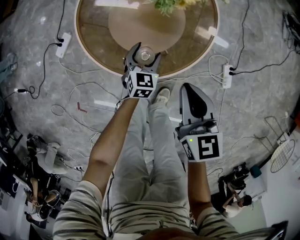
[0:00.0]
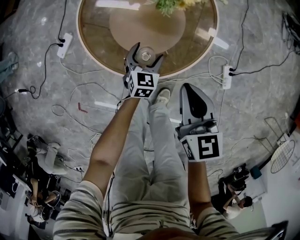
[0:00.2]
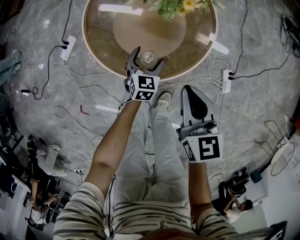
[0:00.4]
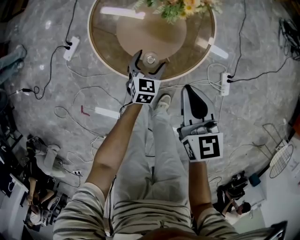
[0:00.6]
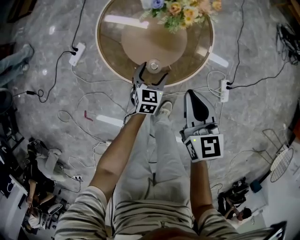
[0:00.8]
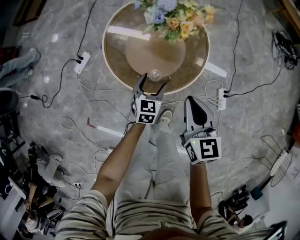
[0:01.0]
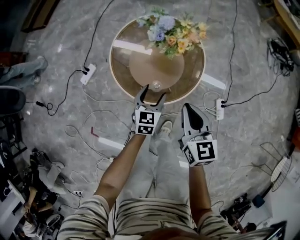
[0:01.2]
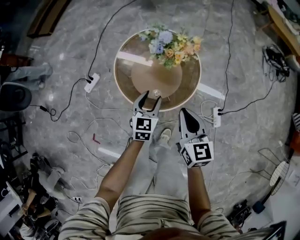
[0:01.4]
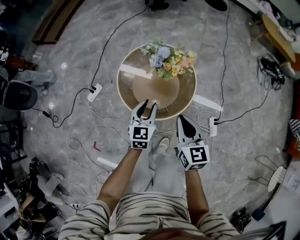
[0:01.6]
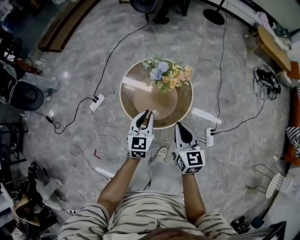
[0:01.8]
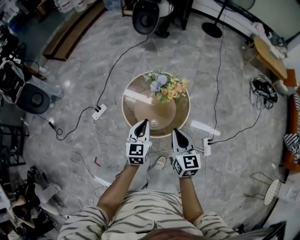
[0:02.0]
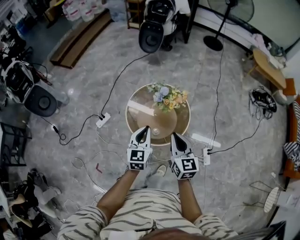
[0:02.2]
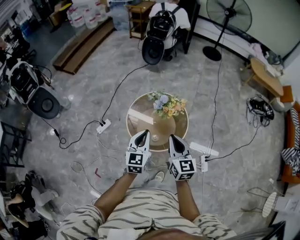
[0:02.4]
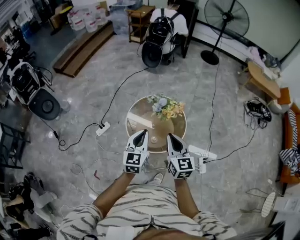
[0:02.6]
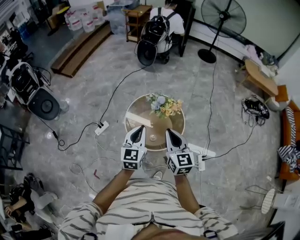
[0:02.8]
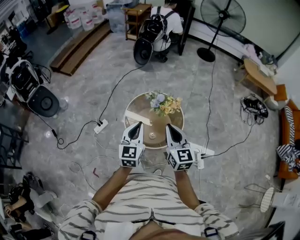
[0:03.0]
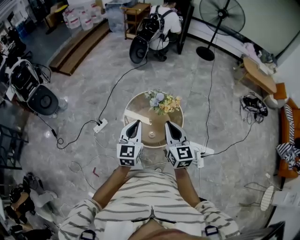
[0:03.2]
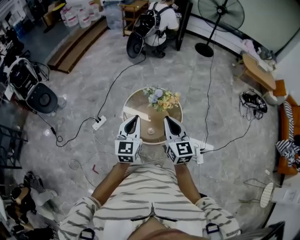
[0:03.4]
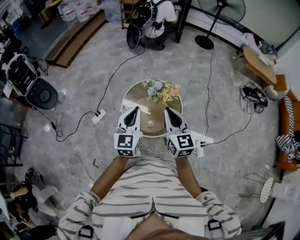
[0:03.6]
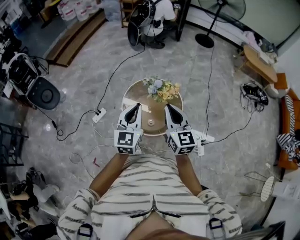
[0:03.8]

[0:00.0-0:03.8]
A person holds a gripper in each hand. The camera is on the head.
0:00.0 to 0:01.2: Both grippers travel together upward, roughly 15 cm.
0:01.2 to 0:02.6: Both grippers move upward, approximately 35 cm. The left gripper turns by some 20 degrees, and closes.
0:02.6 to 0:03.8: Both grippers move upward, some 5 cm.

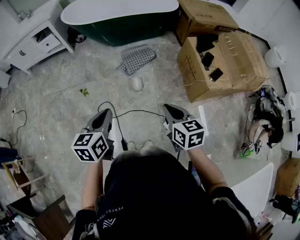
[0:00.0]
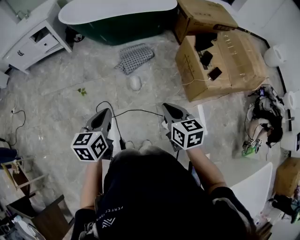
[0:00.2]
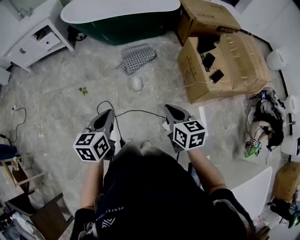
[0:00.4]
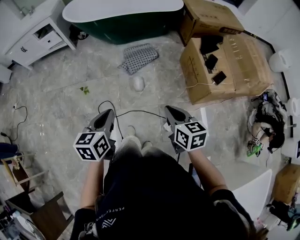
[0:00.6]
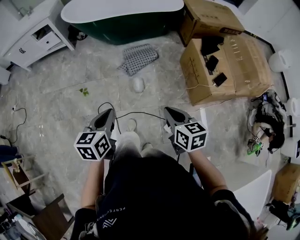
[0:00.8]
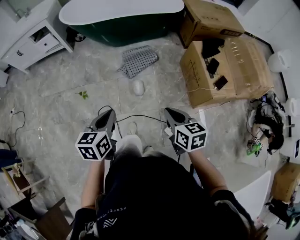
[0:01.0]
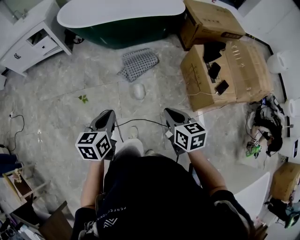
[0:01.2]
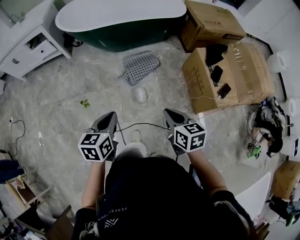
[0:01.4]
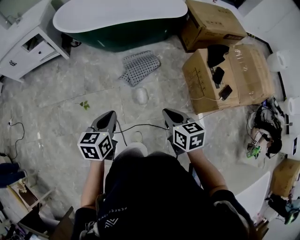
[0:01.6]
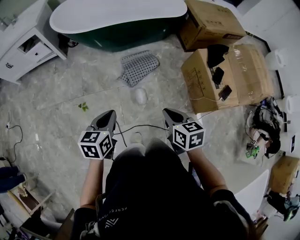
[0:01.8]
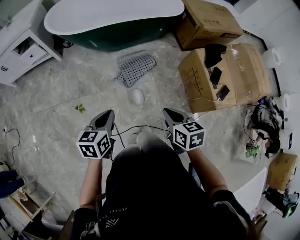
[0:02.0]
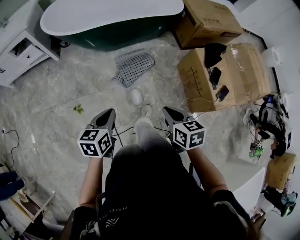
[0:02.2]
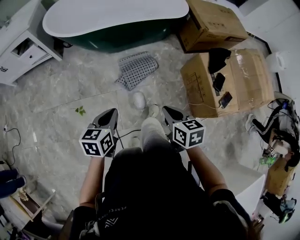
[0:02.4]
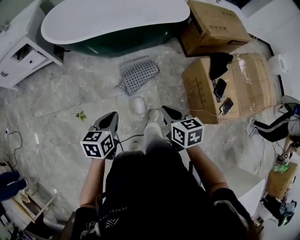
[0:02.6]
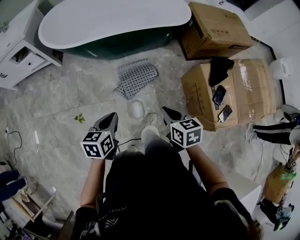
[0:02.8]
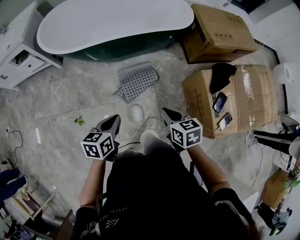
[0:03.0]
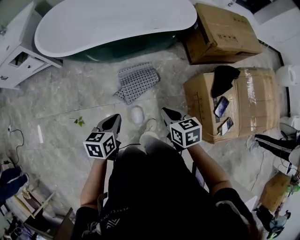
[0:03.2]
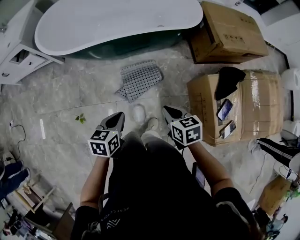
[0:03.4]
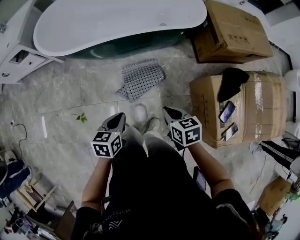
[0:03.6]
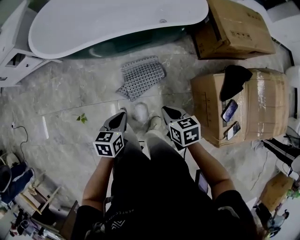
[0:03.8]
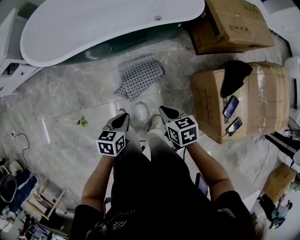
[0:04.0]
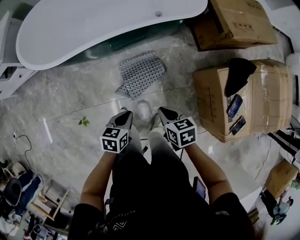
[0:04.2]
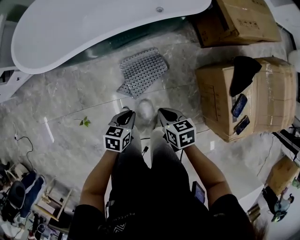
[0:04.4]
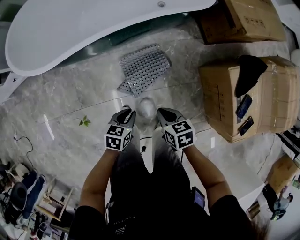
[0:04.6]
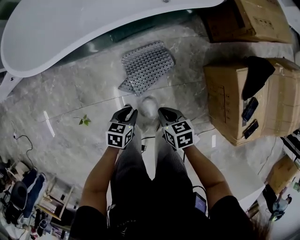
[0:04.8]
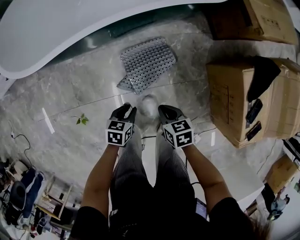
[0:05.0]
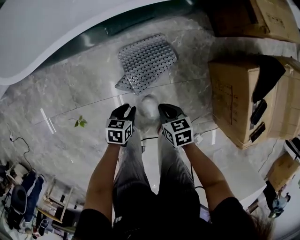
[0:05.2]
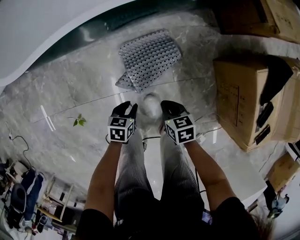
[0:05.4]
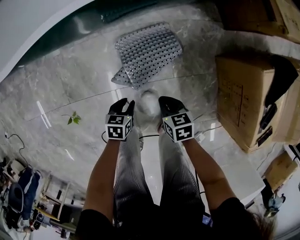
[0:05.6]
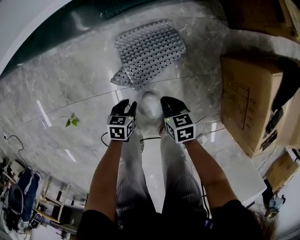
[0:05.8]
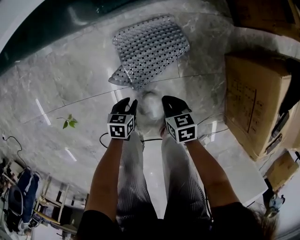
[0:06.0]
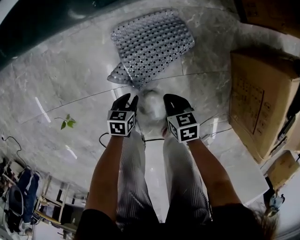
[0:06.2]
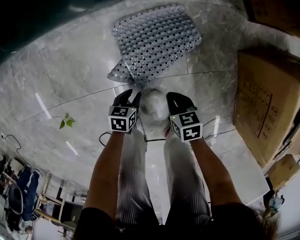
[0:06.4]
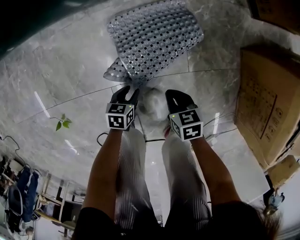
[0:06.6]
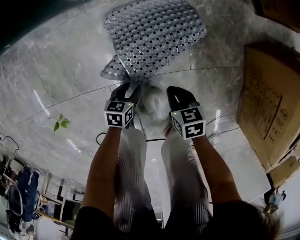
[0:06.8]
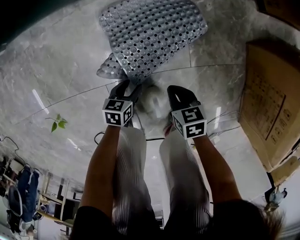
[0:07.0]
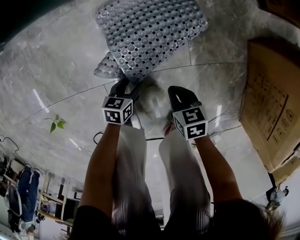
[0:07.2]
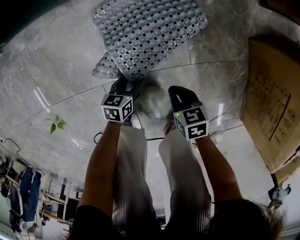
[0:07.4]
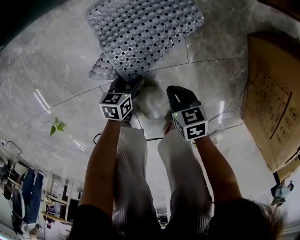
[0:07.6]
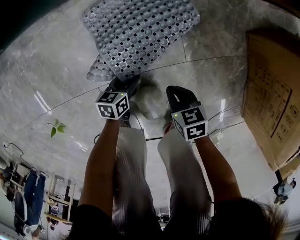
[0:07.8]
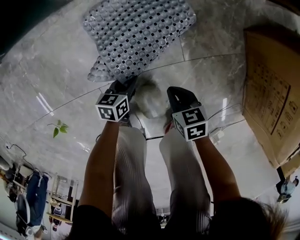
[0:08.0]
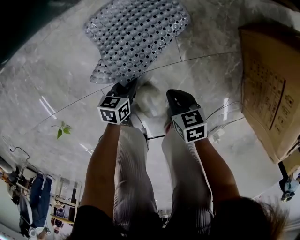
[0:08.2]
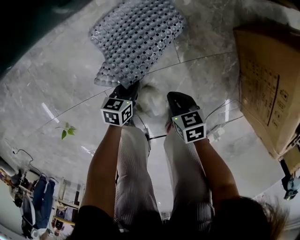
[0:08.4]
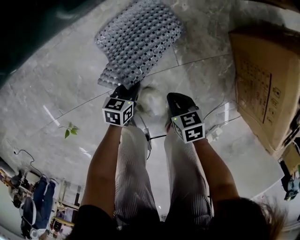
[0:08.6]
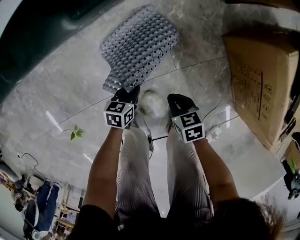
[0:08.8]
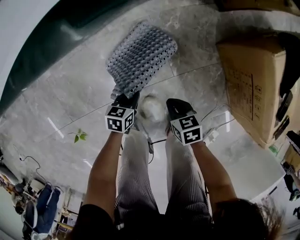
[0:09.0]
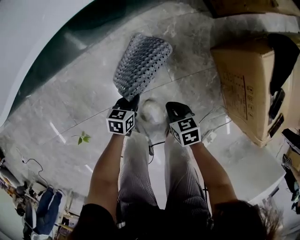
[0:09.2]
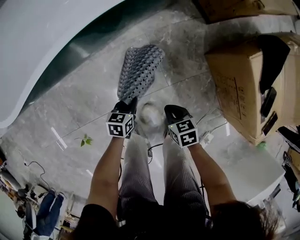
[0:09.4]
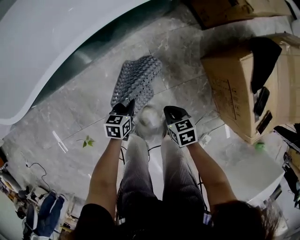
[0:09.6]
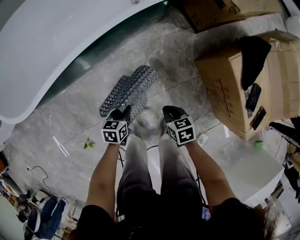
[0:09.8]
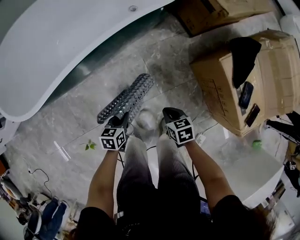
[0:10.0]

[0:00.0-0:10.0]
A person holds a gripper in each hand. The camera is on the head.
0:00.0 to 0:01.4: Both grippers move forward, some 15 cm.
0:01.4 to 0:02.8: The two grippers go approximately 20 cm forward.
0:02.8 to 0:04.2: The left gripper moves forward, downward and to the right, some 20 cm; the right gripper heads forward and downward, covering some 20 cm.
0:04.2 to 0:05.8: The two grippers go about 35 cm downward. The left gripper opens.
0:05.8 to 0:07.2: Both grippers move downward, some 20 cm. The left gripper opens up.
0:07.2 to 0:08.6: Both grippers move upward, approximately 10 cm. The left gripper closes its fingers.
0:08.6 to 0:10.0: The grippers both shift upward by approximately 30 cm.

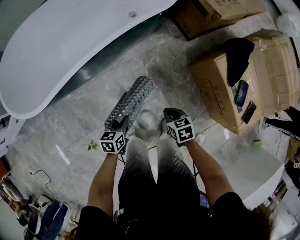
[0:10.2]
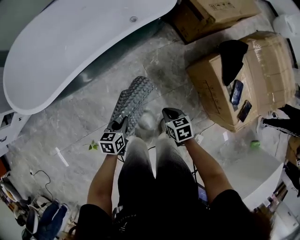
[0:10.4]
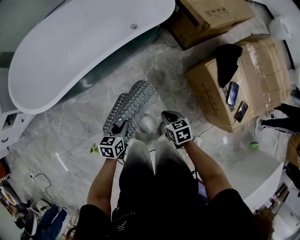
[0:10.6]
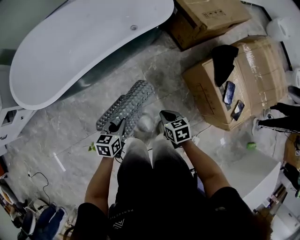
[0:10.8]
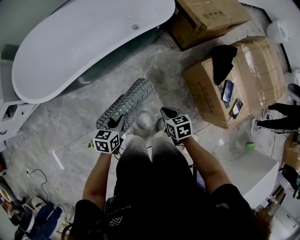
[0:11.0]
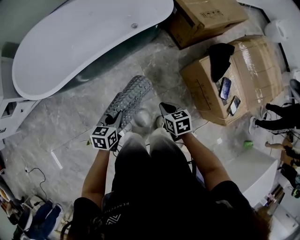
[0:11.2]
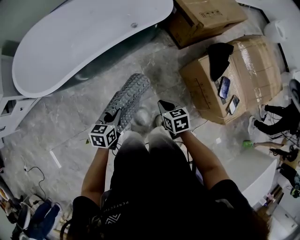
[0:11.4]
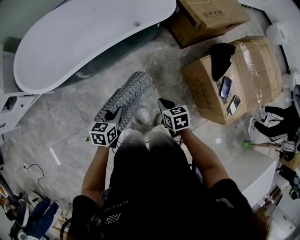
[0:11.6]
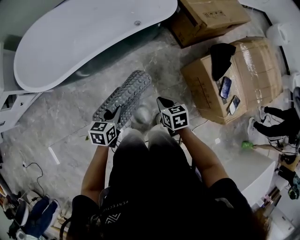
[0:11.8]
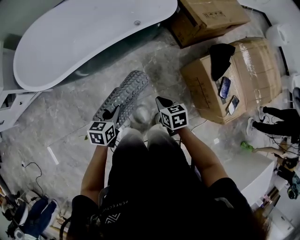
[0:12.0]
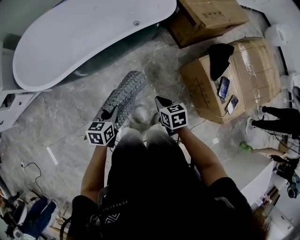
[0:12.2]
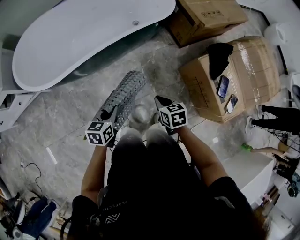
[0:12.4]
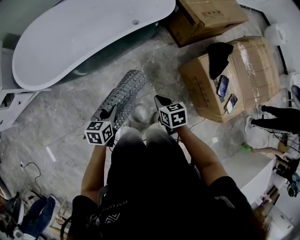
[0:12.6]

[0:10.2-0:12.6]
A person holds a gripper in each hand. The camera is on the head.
0:10.2 to 0:11.4: Both grippers travel together upward, about 15 cm.
0:11.4 to 0:12.6: There are only small adjustments of the grippers.

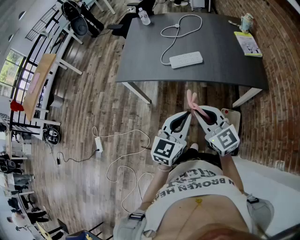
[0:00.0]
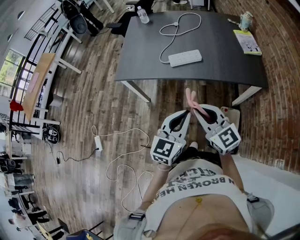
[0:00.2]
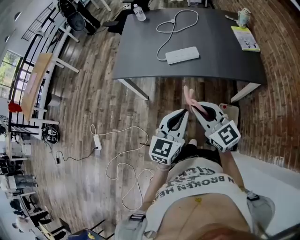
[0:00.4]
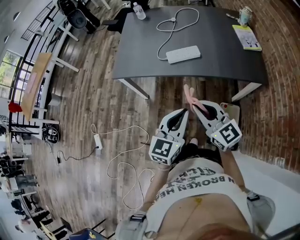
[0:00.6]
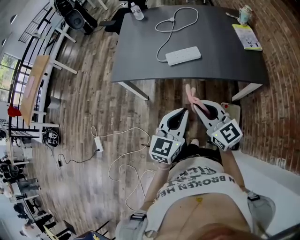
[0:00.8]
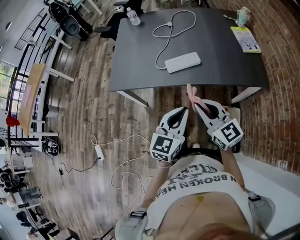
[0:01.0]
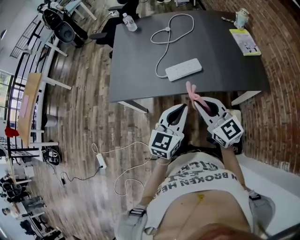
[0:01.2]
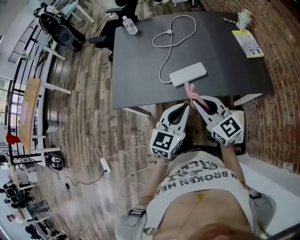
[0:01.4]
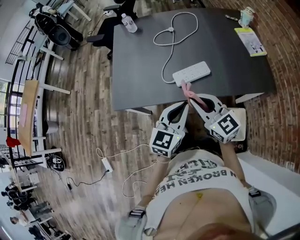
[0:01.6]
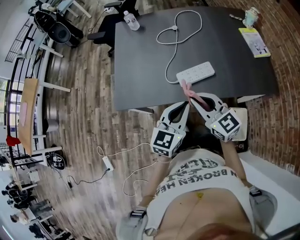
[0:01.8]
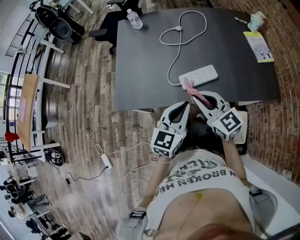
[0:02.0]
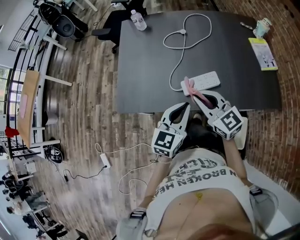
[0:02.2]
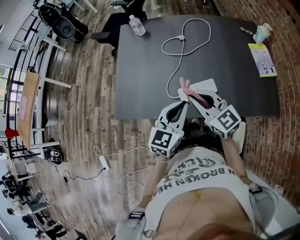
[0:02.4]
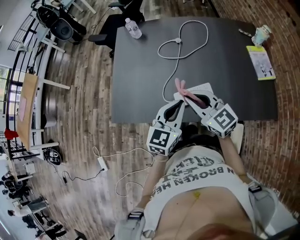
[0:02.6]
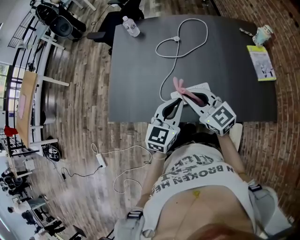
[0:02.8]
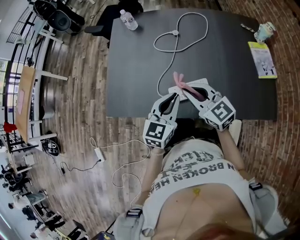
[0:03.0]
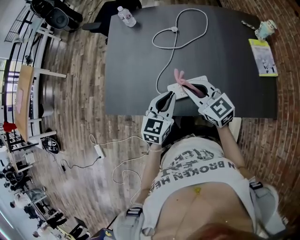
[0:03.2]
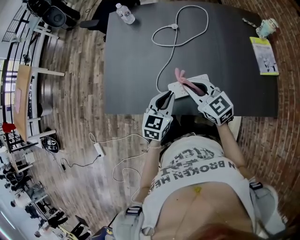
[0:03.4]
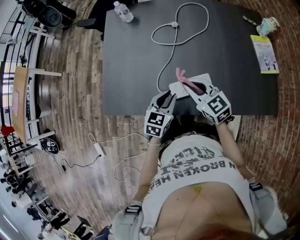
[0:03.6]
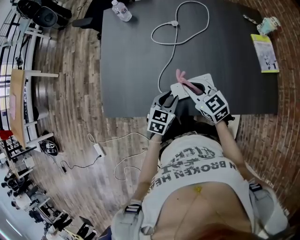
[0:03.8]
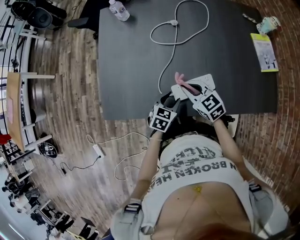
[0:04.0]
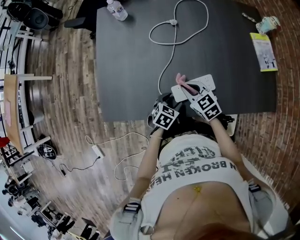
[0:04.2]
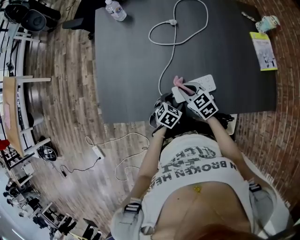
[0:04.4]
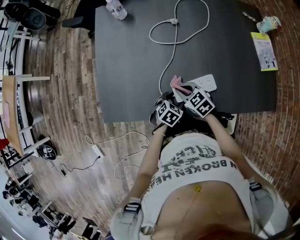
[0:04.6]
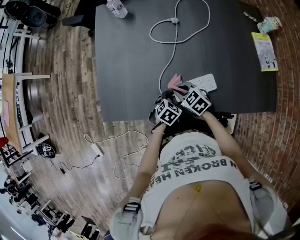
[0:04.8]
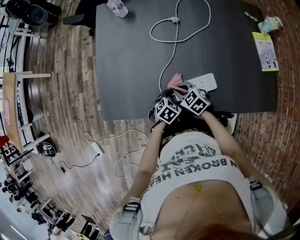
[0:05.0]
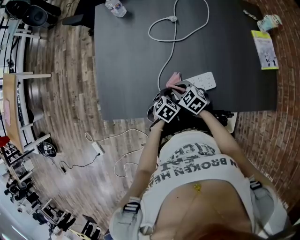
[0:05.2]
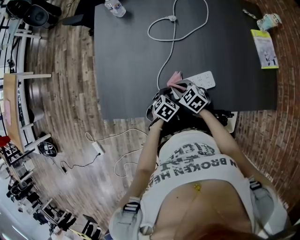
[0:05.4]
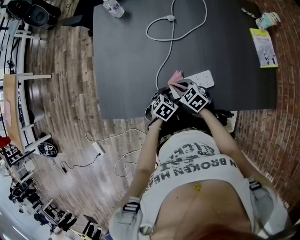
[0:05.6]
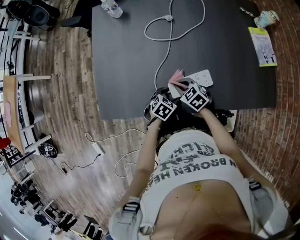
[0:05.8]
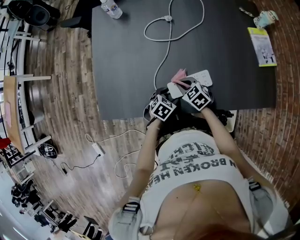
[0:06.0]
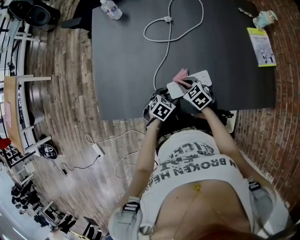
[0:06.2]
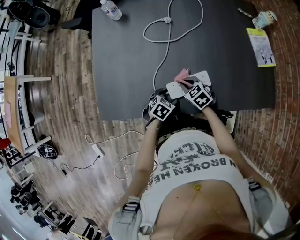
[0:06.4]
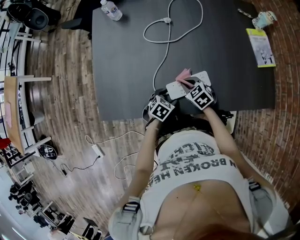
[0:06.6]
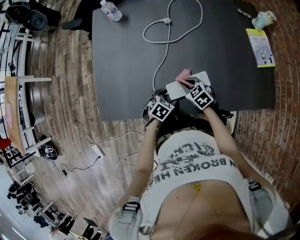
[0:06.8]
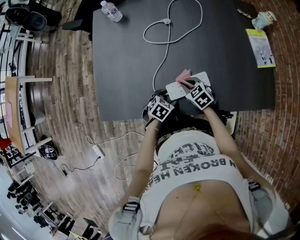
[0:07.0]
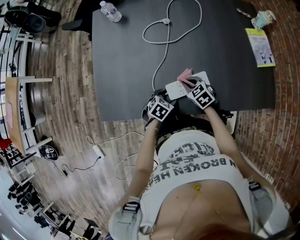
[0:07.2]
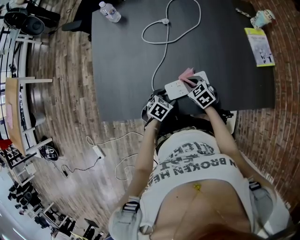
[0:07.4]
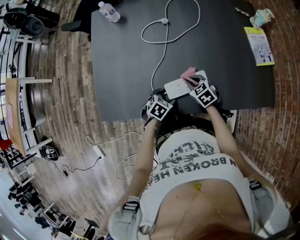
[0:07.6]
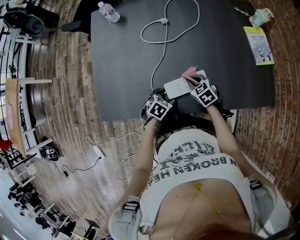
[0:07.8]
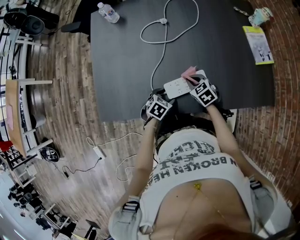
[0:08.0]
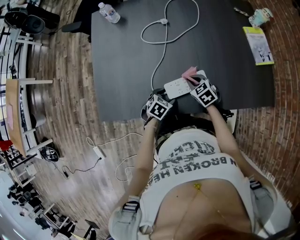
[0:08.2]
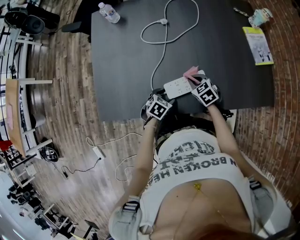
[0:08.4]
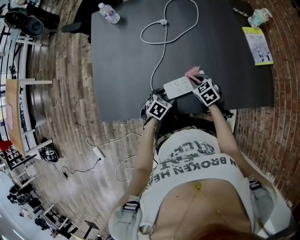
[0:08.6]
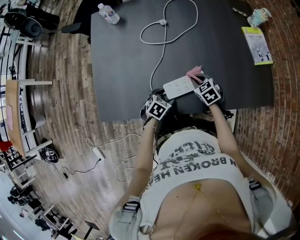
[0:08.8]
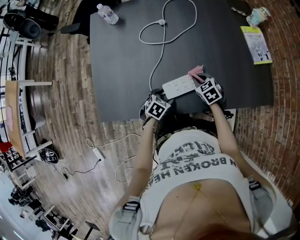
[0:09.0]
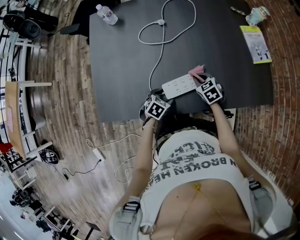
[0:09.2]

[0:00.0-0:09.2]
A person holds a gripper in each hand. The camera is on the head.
0:00.0 to 0:01.6: Both grippers travel together forward, approximately 25 cm.
0:01.6 to 0:03.0: The two grippers go approximately 20 cm forward.
0:03.0 to 0:04.6: The grippers both shift downward by roughly 25 cm. The right gripper angles its fingers downward, by approximately 30 degrees; the left gripper angles its fingers downward, by about 40 degrees, and opens up.
0:04.6 to 0:06.2: The right gripper changes place by approximately 5 cm.
0:06.2 to 0:07.6: The right gripper goes about 5 cm to the right.
0:07.6 to 0:09.2: The right gripper heads to the right, covering about 5 cm.
